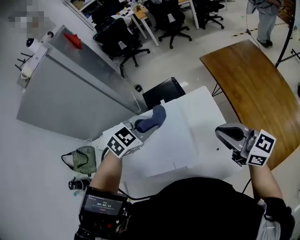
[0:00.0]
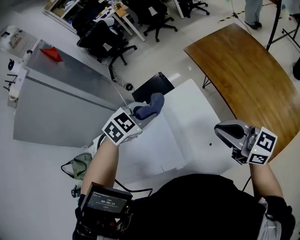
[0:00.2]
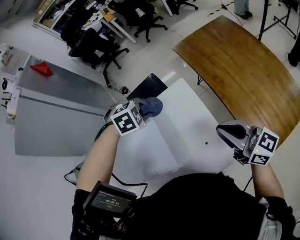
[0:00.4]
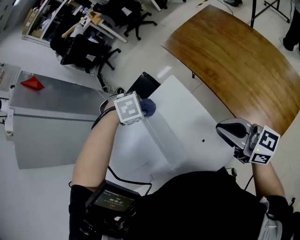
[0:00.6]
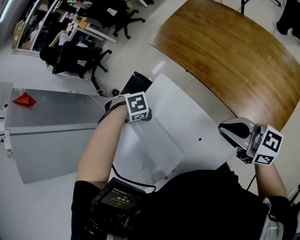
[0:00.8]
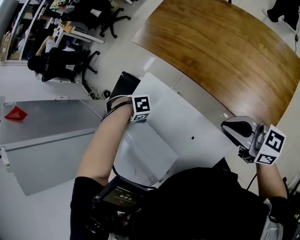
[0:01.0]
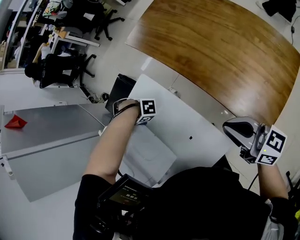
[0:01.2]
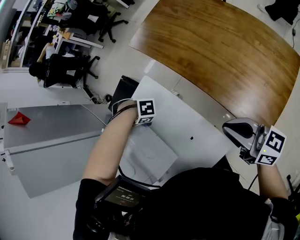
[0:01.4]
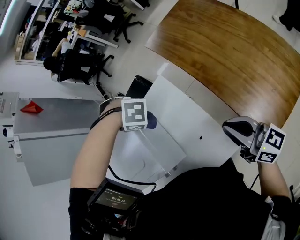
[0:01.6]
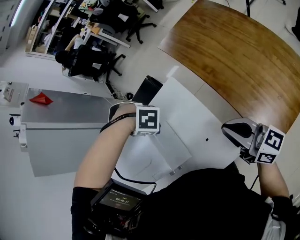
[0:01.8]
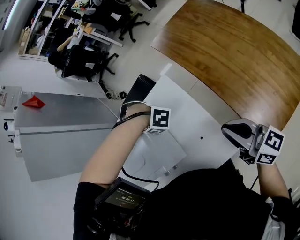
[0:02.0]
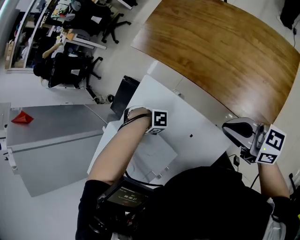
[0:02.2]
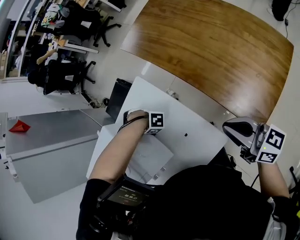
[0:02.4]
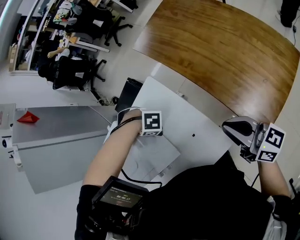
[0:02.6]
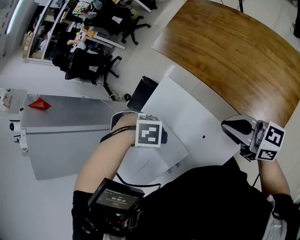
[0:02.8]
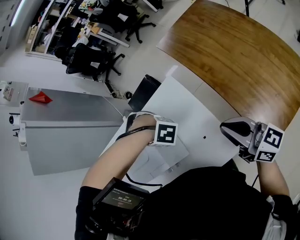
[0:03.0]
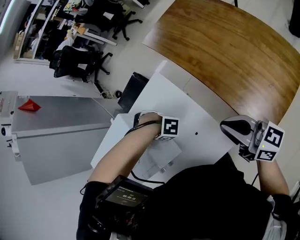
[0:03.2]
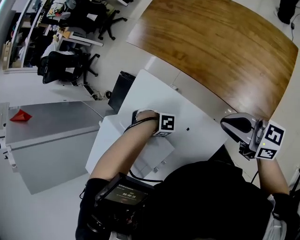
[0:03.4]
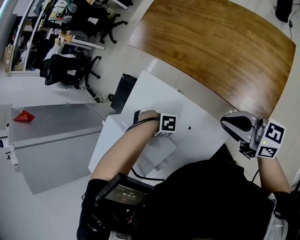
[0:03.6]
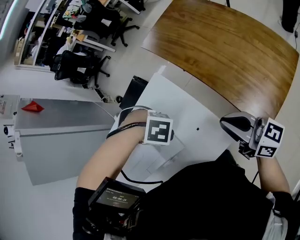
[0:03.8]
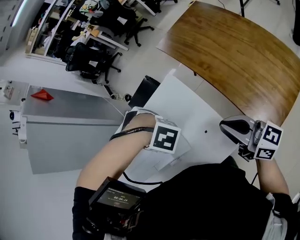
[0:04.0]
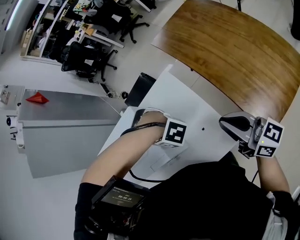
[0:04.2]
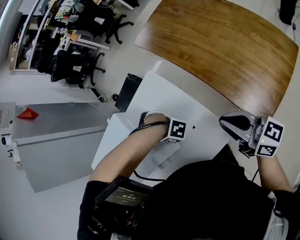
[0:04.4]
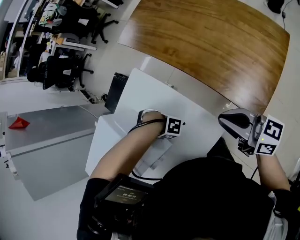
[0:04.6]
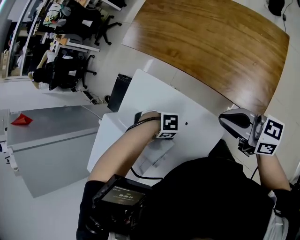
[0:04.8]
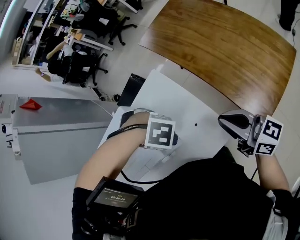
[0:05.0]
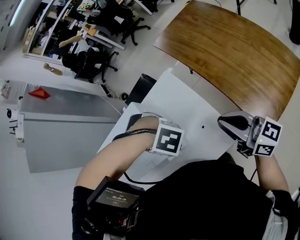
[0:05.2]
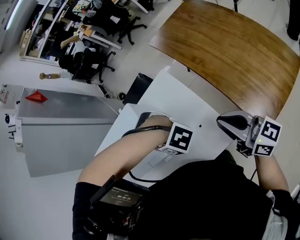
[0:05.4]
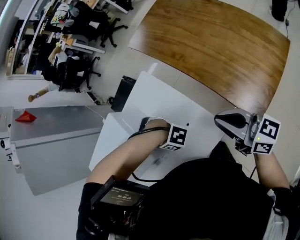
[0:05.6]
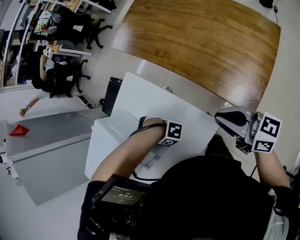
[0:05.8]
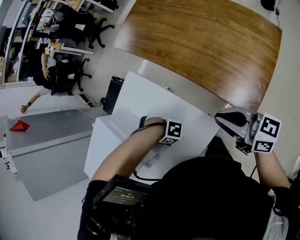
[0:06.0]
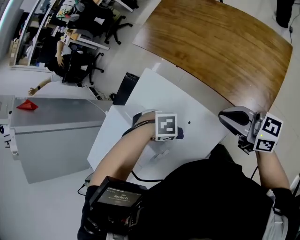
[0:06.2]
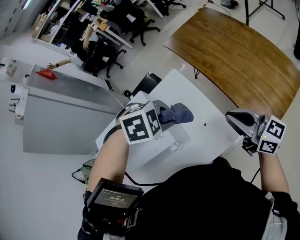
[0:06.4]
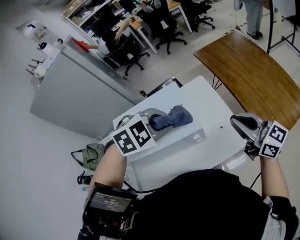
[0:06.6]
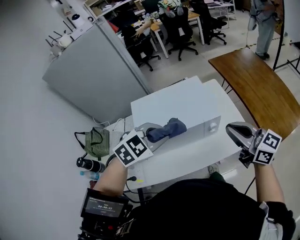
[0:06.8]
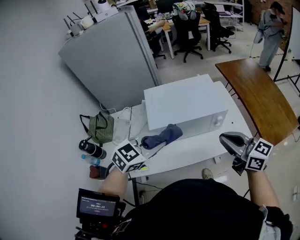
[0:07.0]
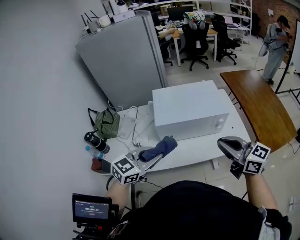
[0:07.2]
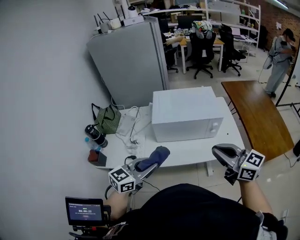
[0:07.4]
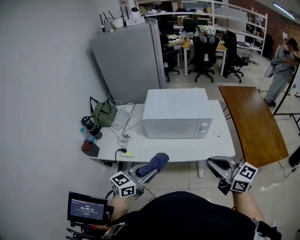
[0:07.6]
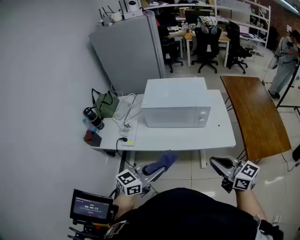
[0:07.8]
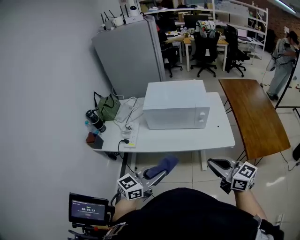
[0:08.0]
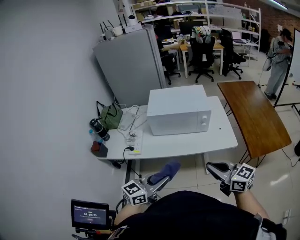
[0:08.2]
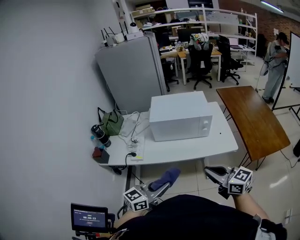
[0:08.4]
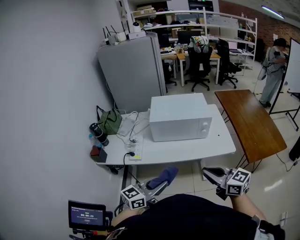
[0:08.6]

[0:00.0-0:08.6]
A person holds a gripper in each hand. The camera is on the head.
0:00.0 to 0:01.4: The right gripper shifts by roughly 25 cm, and rotates some 30 degrees. The left gripper goes roughly 25 cm downward, and changes its angle by roughly 90 degrees.
0:01.4 to 0:02.8: The left gripper moves up and down over about 20 cm, changing direction 2 times, while the right gripper goes forward and backward, roughly 5 cm each way, reversing 2 times.
0:02.8 to 0:04.4: The left gripper goes up and down, roughly 20 cm each way, reversing 2 times.
0:04.4 to 0:05.8: The right gripper ends up approximately 5 cm from where it was. The left gripper goes up and down, about 20 cm each way, reversing 2 times.
0:05.8 to 0:07.2: The right gripper moves some 50 cm, and swivels roughly 40 degrees. The left gripper moves approximately 50 cm, and turns by about 150 degrees.
0:07.2 to 0:08.6: The grippers both shift backward by approximately 20 cm. The left gripper turns by some 20 degrees.

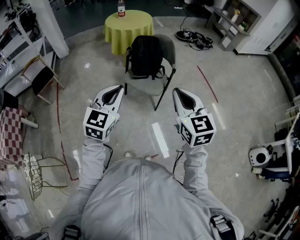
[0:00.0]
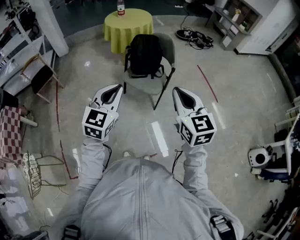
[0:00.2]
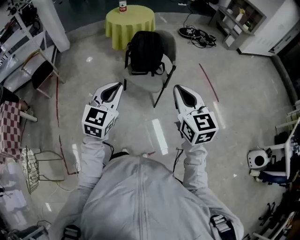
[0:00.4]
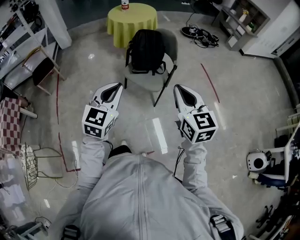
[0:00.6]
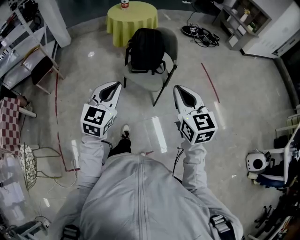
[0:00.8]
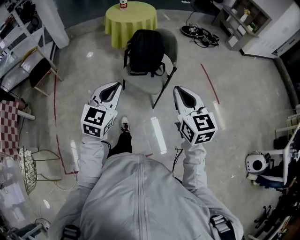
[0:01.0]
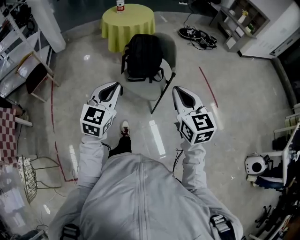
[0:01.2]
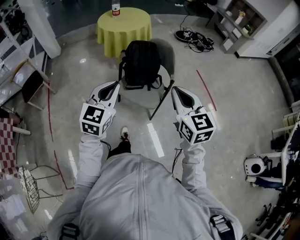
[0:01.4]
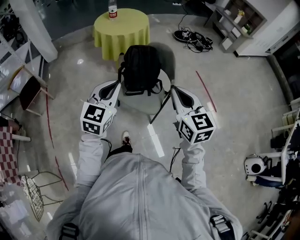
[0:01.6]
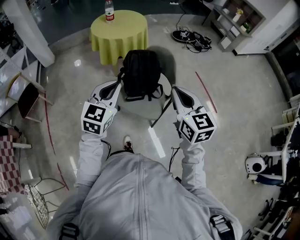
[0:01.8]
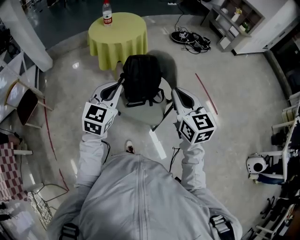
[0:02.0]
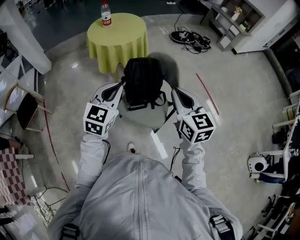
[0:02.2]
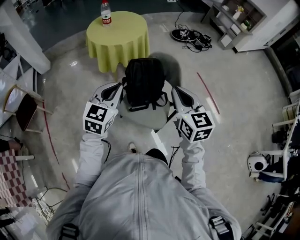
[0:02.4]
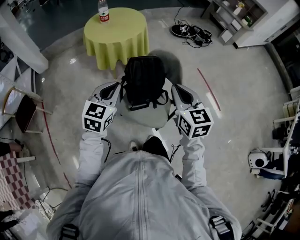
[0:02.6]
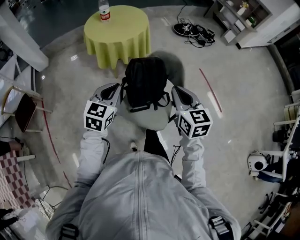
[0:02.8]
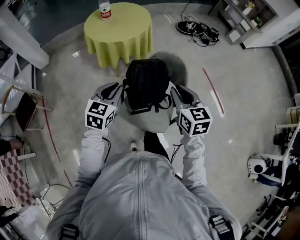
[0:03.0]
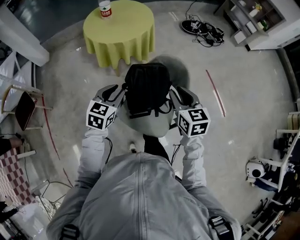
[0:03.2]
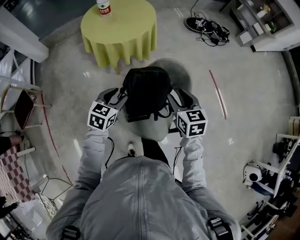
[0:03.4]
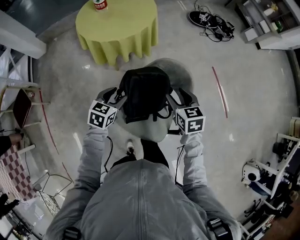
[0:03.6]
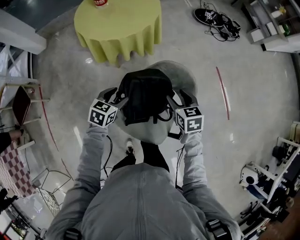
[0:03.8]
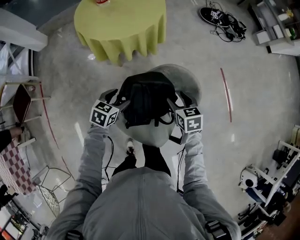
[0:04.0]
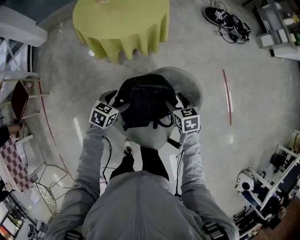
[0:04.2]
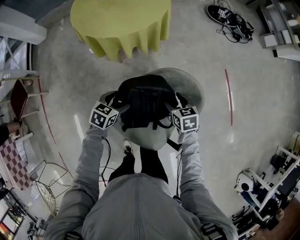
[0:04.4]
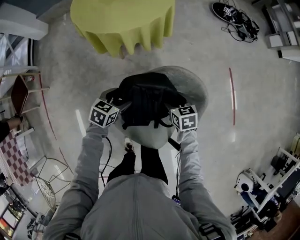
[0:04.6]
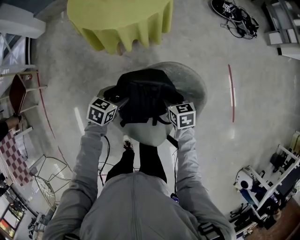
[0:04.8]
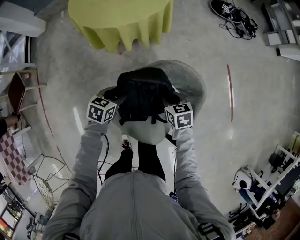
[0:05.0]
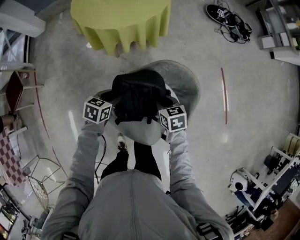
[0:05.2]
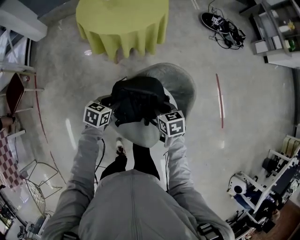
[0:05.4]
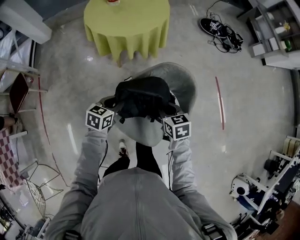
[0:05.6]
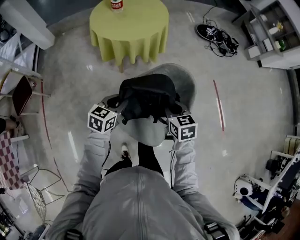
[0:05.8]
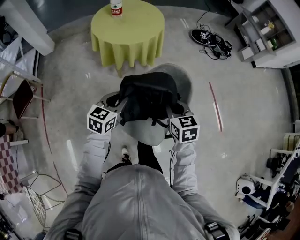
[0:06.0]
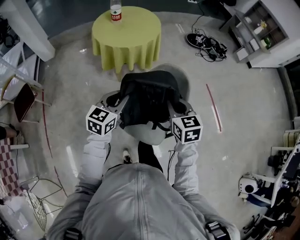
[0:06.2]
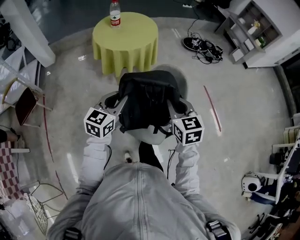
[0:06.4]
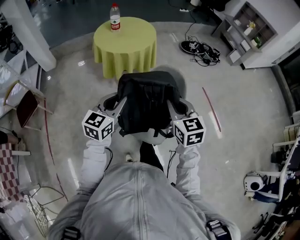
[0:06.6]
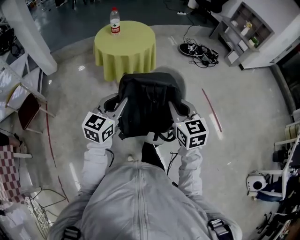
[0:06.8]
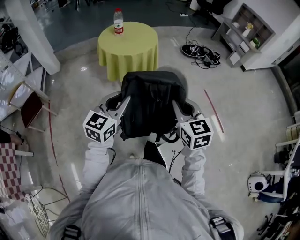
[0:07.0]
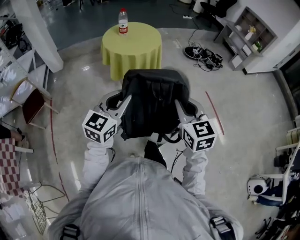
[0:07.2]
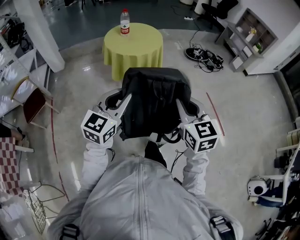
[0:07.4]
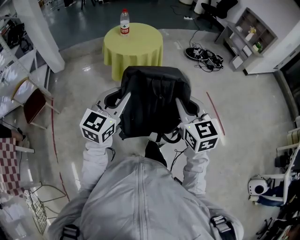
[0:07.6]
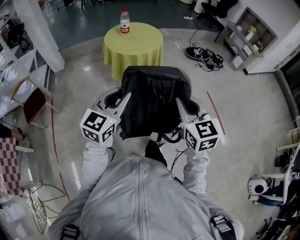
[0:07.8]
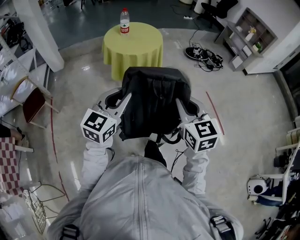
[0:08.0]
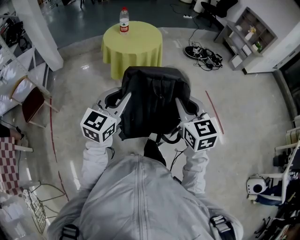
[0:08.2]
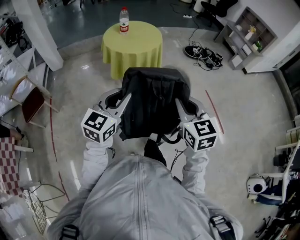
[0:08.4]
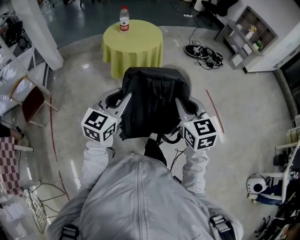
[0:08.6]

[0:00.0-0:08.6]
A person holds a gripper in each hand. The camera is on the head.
0:00.0 to 0:01.4: Both grippers move forward, roughly 20 cm.
0:01.4 to 0:02.8: Both grippers travel together forward, approximately 30 cm.
0:02.8 to 0:04.4: The two grippers go about 40 cm downward and forward. The left gripper swivels some 40 degrees, and opens its fingers. Meanwhile the right gripper tilts its fingers about 30 degrees downward, and opens its fingers.
0:04.4 to 0:05.8: Both grippers travel together upward and backward, about 20 cm. The right gripper closes its fingers. The left gripper closes its fingers.
0:05.8 to 0:07.2: Both grippers move upward and backward, roughly 30 cm. The left gripper swivels some 30 degrees. The right gripper rotates about 30 degrees.
0:07.2 to 0:08.6: There are only small adjustments of the grippers.

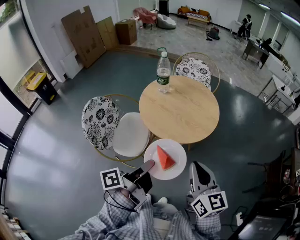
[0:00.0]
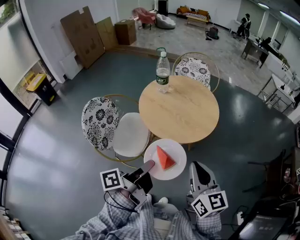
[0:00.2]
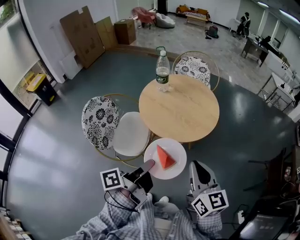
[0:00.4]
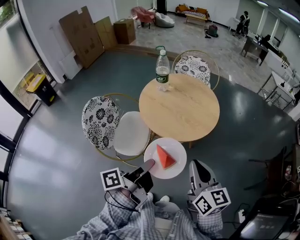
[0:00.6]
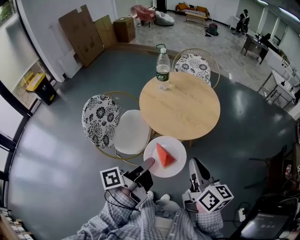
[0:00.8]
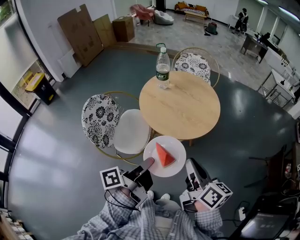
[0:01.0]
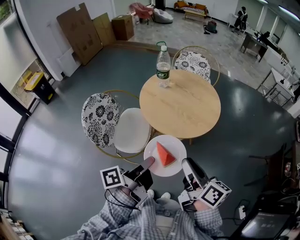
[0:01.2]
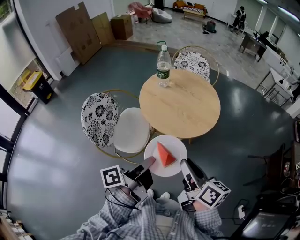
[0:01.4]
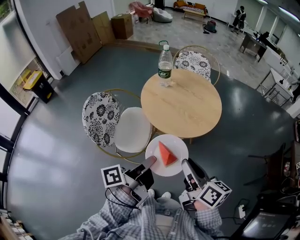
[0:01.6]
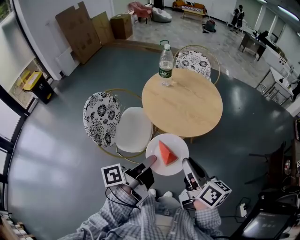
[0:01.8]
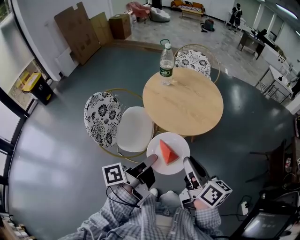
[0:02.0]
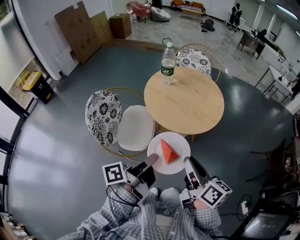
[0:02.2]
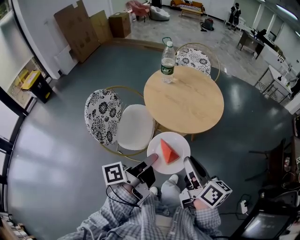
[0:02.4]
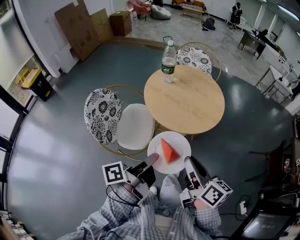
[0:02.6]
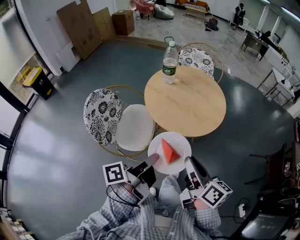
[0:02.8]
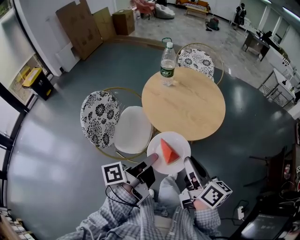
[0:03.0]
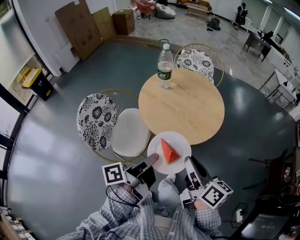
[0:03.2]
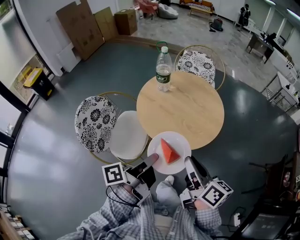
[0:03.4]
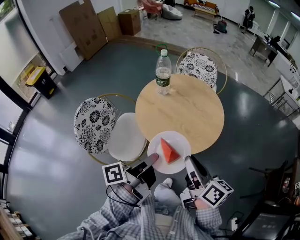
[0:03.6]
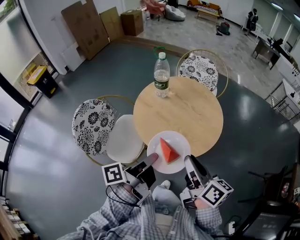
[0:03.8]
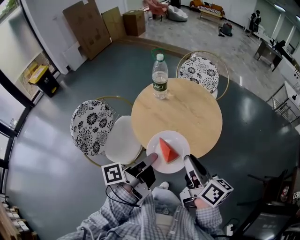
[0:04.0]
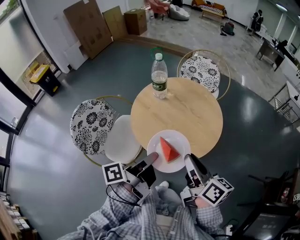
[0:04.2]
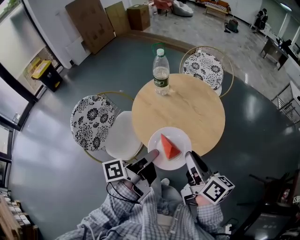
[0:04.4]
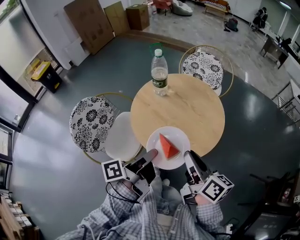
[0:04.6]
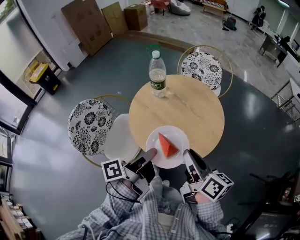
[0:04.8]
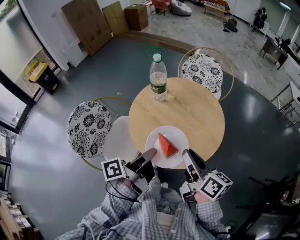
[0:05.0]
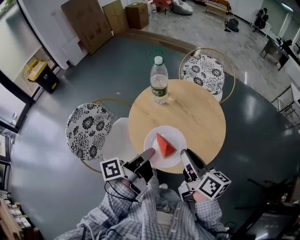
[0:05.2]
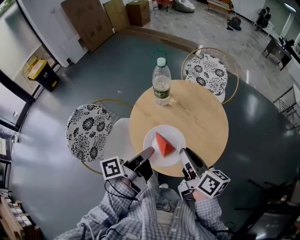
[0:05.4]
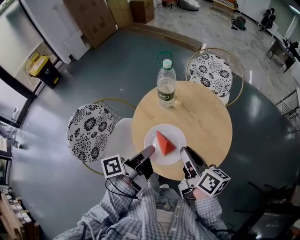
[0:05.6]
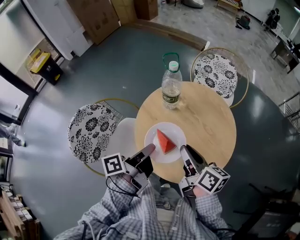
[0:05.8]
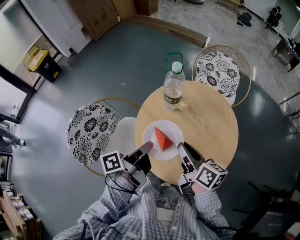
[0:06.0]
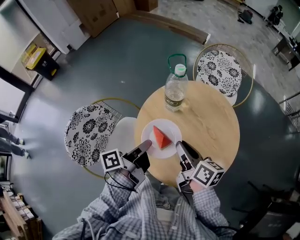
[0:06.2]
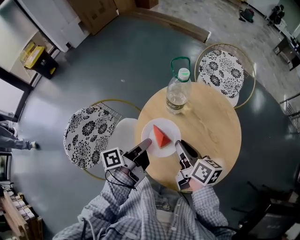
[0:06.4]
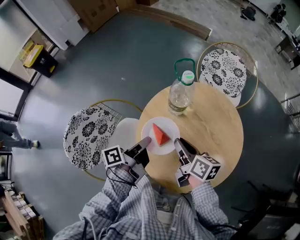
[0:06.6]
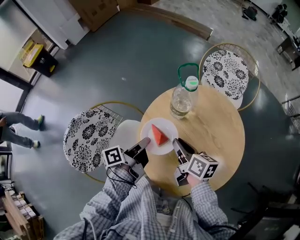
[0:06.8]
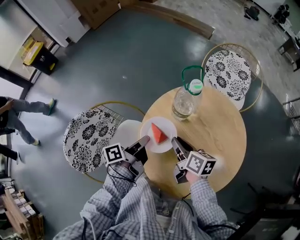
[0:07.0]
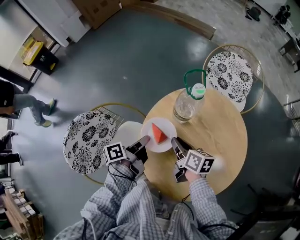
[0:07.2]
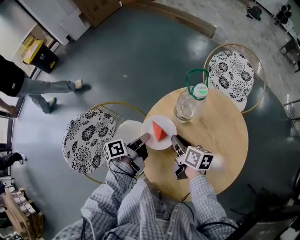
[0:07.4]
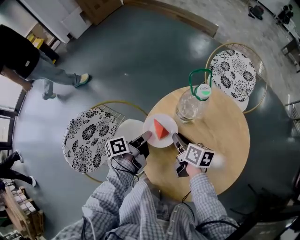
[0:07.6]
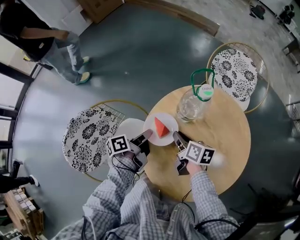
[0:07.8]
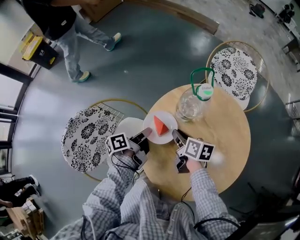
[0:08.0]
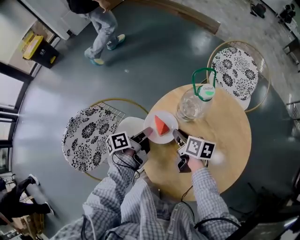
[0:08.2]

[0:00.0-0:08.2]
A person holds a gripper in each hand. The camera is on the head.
0:00.0 to 0:01.6: The right gripper shifts by about 5 cm, turns by some 40 degrees, and opens up.
0:01.6 to 0:03.2: The right gripper shifts by some 5 cm.
0:03.2 to 0:05.0: The right gripper moves roughly 20 cm.
0:05.0 to 0:06.6: The right gripper ends up some 25 cm from where it was.
0:06.6 to 0:08.2: The right gripper is displaced downward by about 10 cm.
